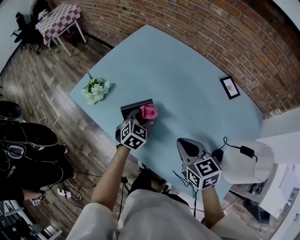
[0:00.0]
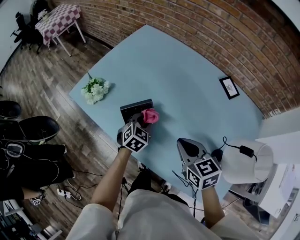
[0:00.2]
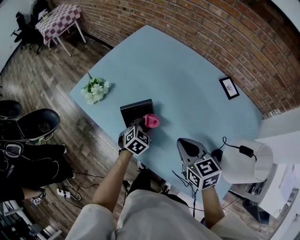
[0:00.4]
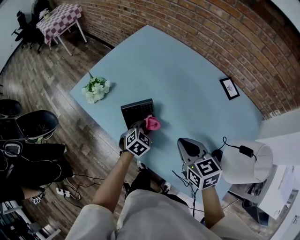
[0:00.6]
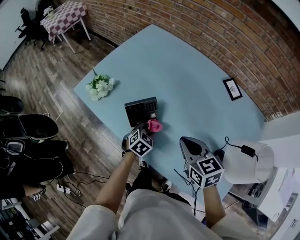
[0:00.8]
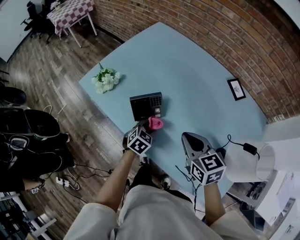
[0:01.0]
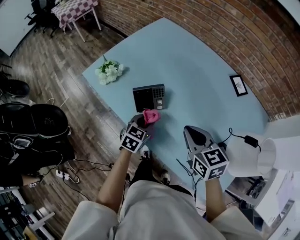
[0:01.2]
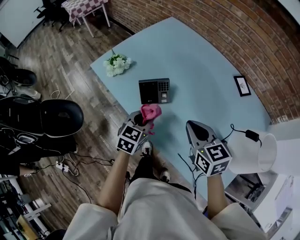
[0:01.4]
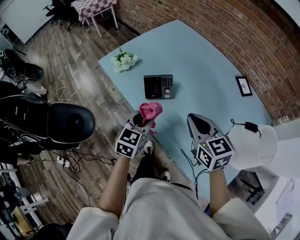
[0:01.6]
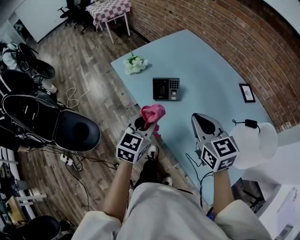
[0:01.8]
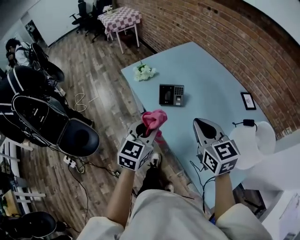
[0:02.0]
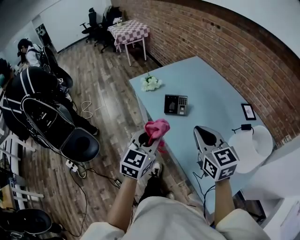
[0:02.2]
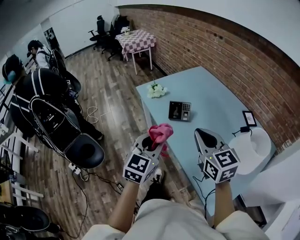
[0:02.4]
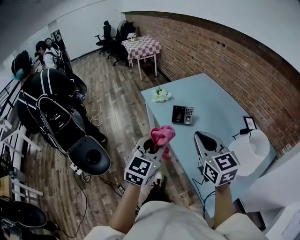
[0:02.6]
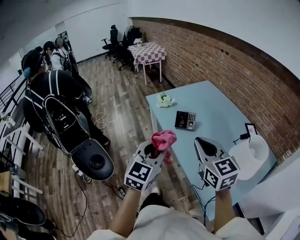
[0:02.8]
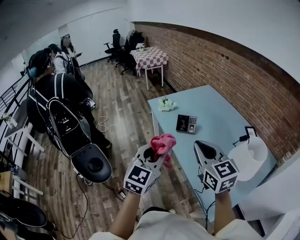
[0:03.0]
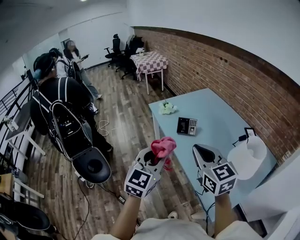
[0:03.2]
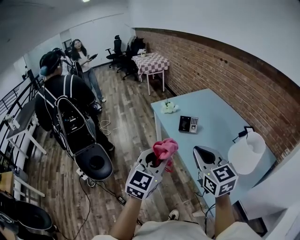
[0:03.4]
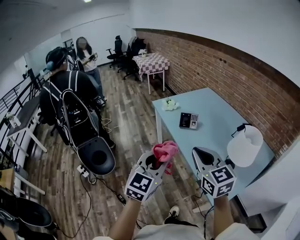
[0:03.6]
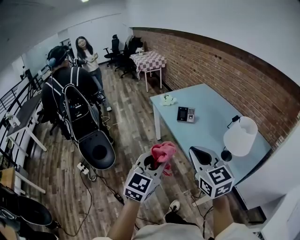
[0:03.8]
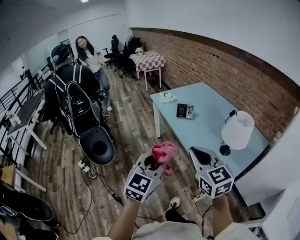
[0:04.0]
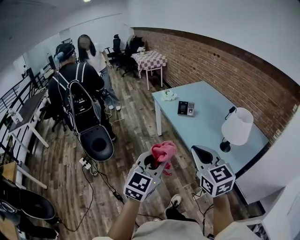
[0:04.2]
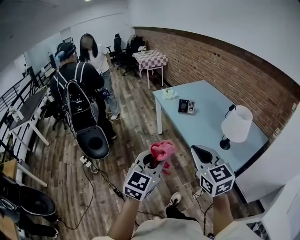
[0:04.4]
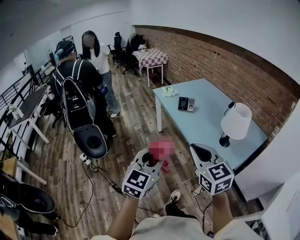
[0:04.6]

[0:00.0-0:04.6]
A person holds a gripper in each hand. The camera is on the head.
0:00.0 to 0:01.6: The left gripper is displaced backward and upward by roughly 20 cm, and rotates about 30 degrees; the right gripper shifts roughly 10 cm upward and backward.
0:01.6 to 0:03.0: The two grippers go about 30 cm backward and upward. The left gripper changes its angle by some 30 degrees; the right gripper changes its angle by some 20 degrees.
0:03.0 to 0:04.6: Both grippers travel together backward, roughly 30 cm.

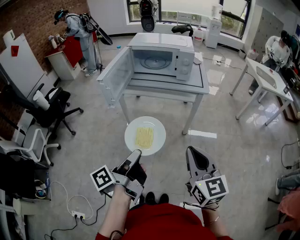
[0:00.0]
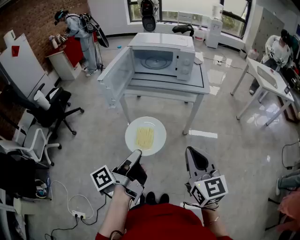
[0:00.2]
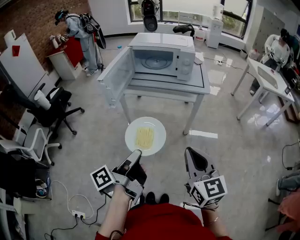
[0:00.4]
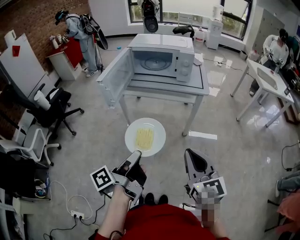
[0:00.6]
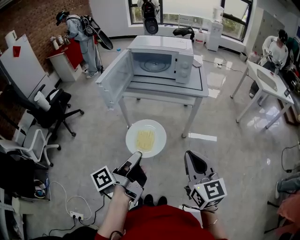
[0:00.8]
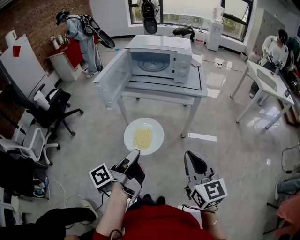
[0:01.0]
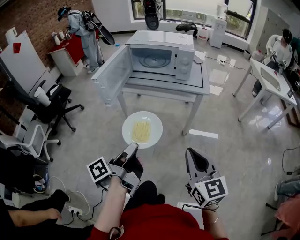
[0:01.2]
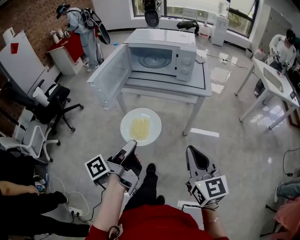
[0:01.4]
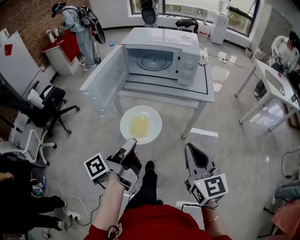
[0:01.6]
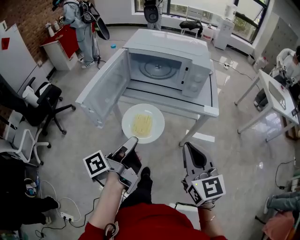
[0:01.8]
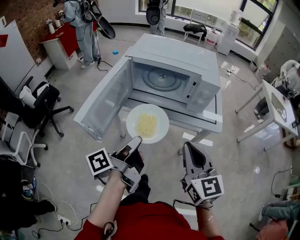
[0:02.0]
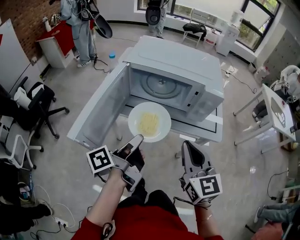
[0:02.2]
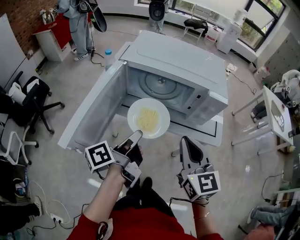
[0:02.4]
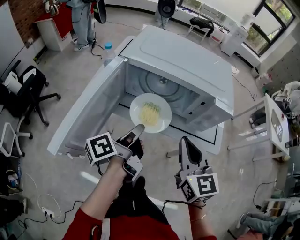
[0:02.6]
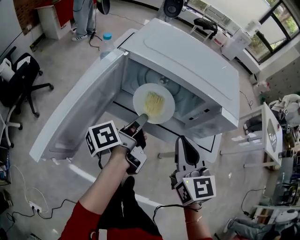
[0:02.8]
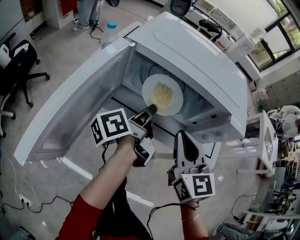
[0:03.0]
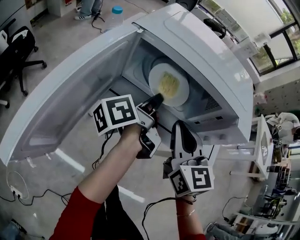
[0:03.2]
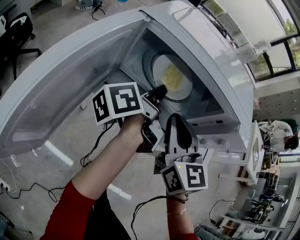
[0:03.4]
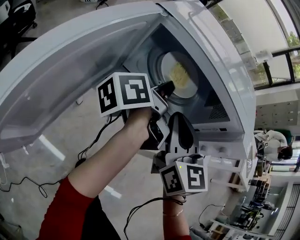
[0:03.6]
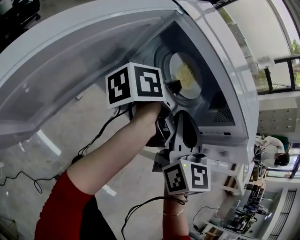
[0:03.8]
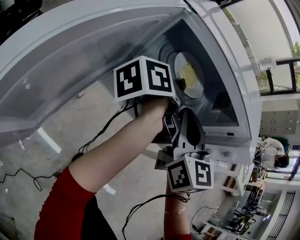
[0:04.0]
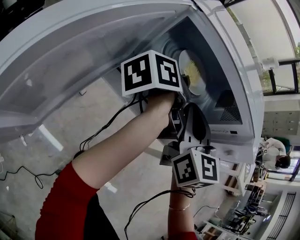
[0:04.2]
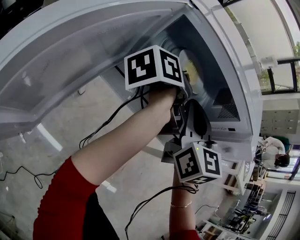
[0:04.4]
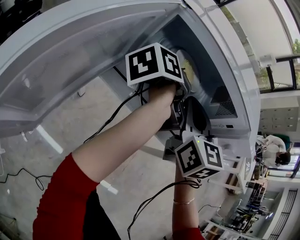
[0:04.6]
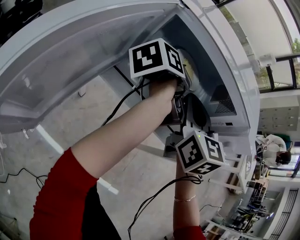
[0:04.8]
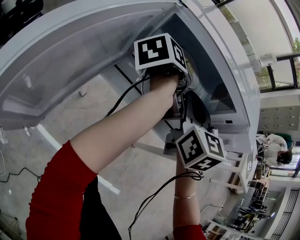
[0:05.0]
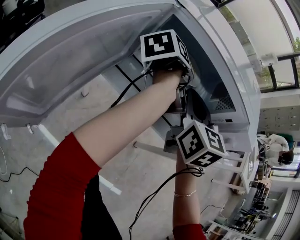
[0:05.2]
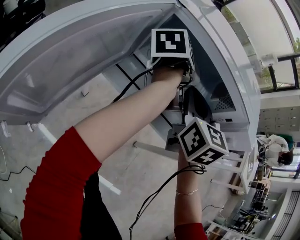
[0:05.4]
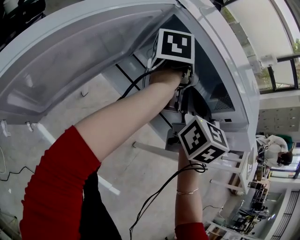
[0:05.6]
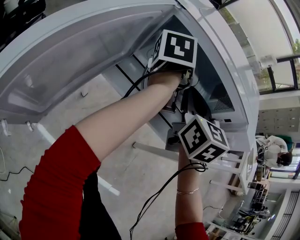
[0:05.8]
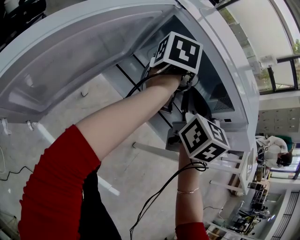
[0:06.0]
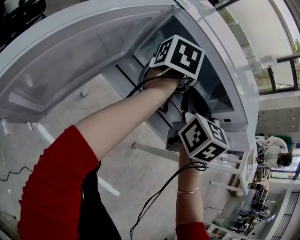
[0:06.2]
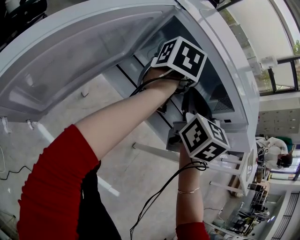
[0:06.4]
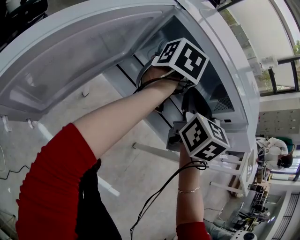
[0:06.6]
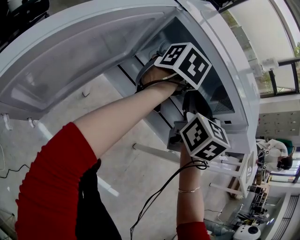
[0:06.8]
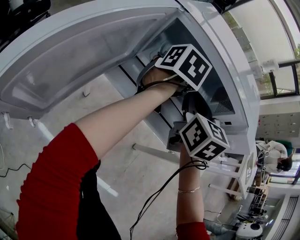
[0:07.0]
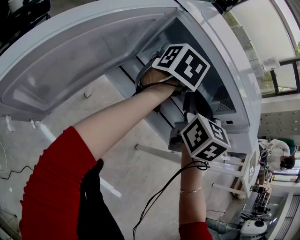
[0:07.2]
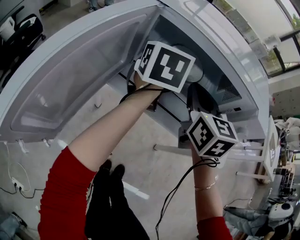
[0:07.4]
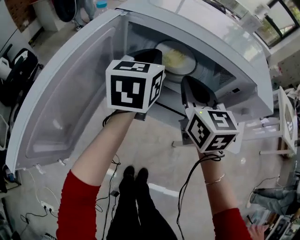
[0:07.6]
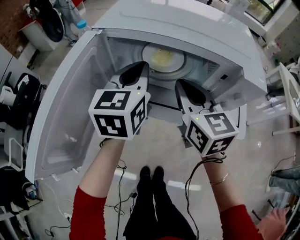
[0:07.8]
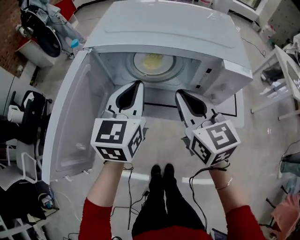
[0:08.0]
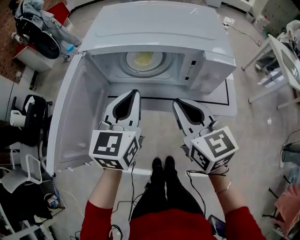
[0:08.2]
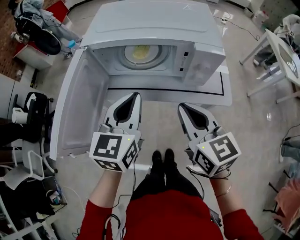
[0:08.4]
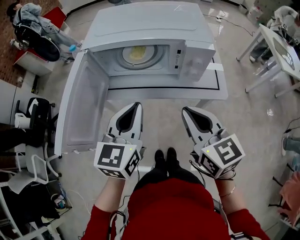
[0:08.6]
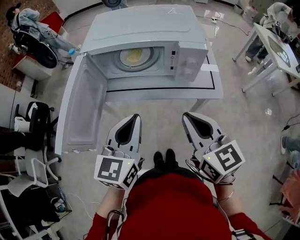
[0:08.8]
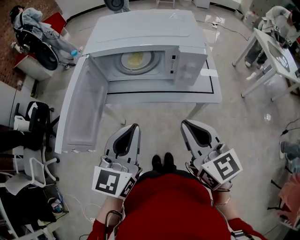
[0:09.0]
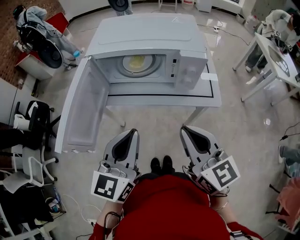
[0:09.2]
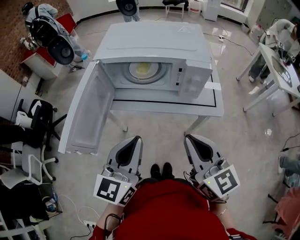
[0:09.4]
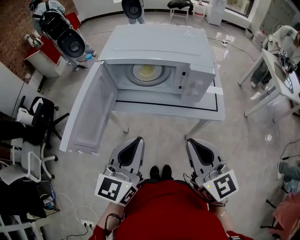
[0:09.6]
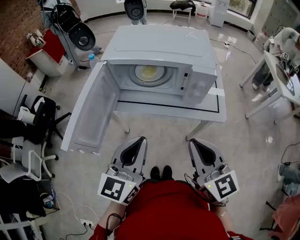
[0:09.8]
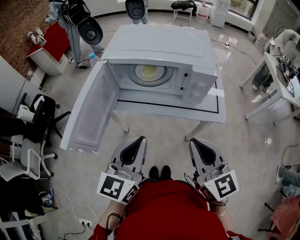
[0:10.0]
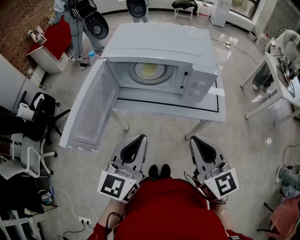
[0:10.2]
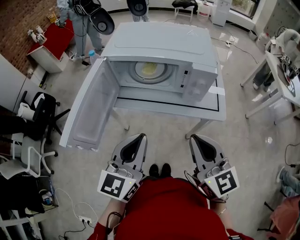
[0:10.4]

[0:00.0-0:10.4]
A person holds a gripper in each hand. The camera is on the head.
0:00.0 to 0:01.4: The two grippers go about 5 cm forward.
0:01.4 to 0:03.0: Both grippers are carried forward, some 40 cm.
0:03.0 to 0:04.4: The grippers both shift forward by roughly 10 cm.
0:04.4 to 0:06.0: The left gripper turns by approximately 40 degrees.
0:06.0 to 0:07.4: The left gripper shifts about 5 cm to the left, turns by approximately 30 degrees, and closes.
0:07.4 to 0:09.0: The grippers both shift backward by about 30 cm. The left gripper turns by approximately 30 degrees.
0:09.0 to 0:10.4: The grippers make only small movements.

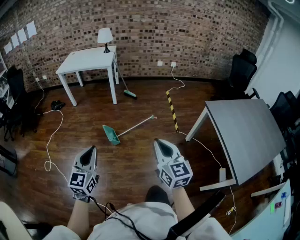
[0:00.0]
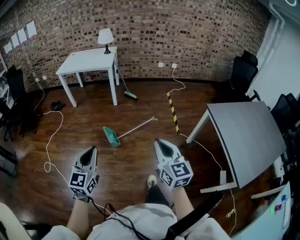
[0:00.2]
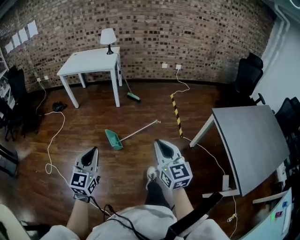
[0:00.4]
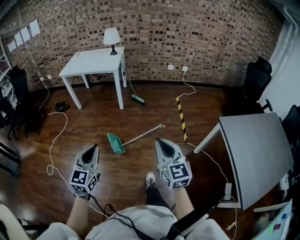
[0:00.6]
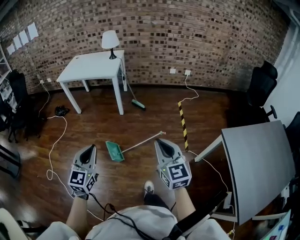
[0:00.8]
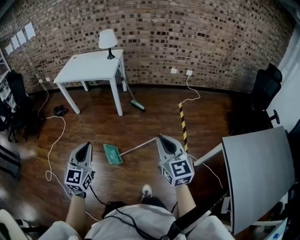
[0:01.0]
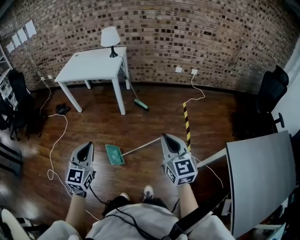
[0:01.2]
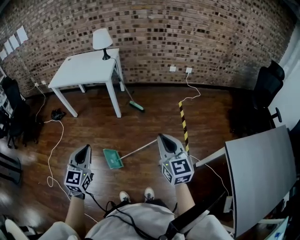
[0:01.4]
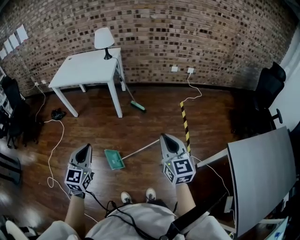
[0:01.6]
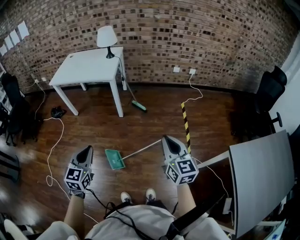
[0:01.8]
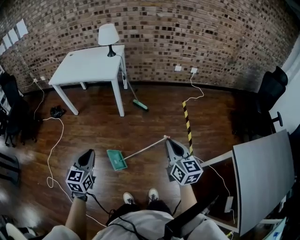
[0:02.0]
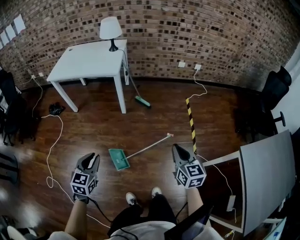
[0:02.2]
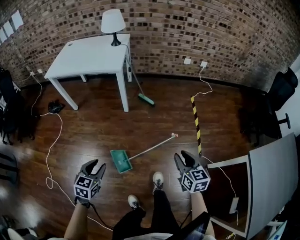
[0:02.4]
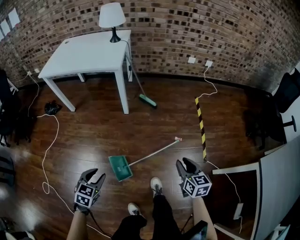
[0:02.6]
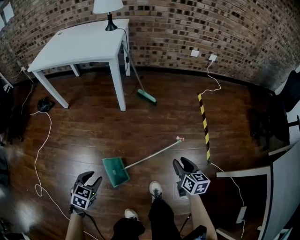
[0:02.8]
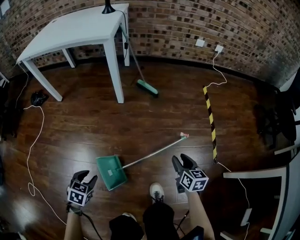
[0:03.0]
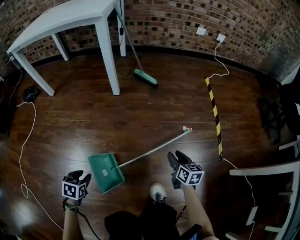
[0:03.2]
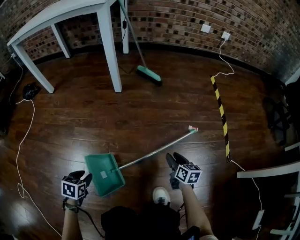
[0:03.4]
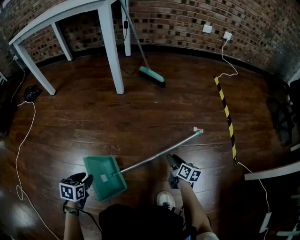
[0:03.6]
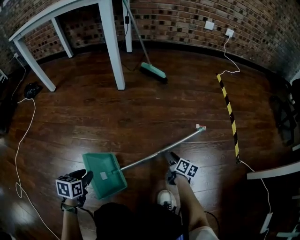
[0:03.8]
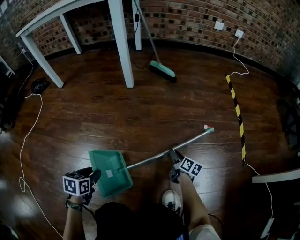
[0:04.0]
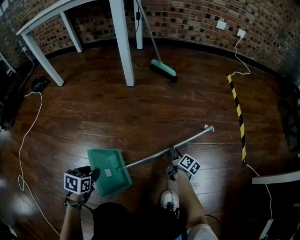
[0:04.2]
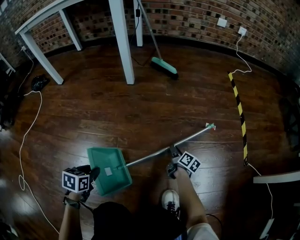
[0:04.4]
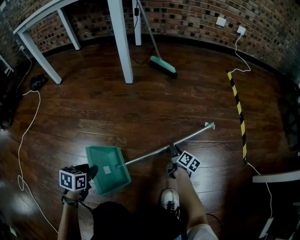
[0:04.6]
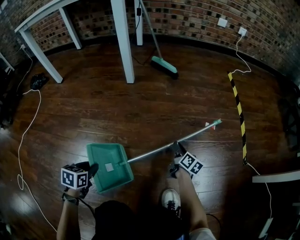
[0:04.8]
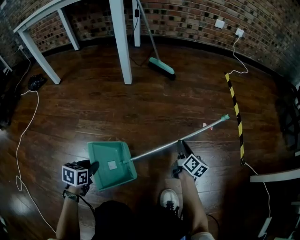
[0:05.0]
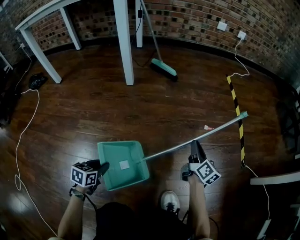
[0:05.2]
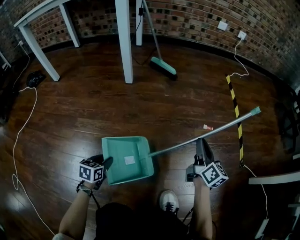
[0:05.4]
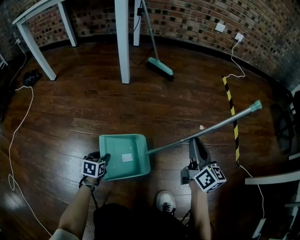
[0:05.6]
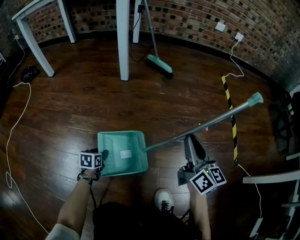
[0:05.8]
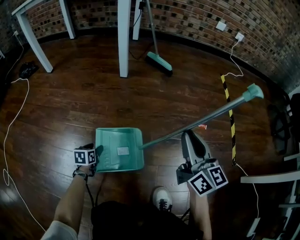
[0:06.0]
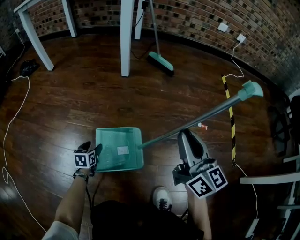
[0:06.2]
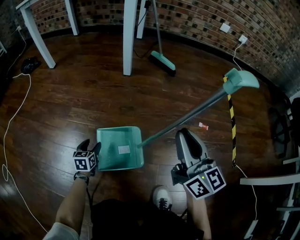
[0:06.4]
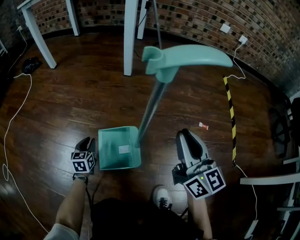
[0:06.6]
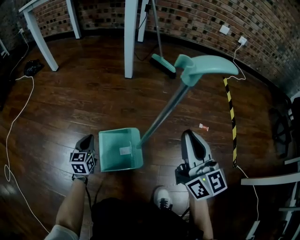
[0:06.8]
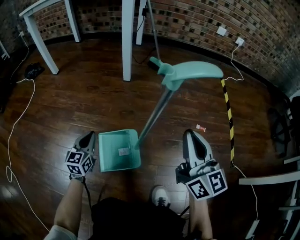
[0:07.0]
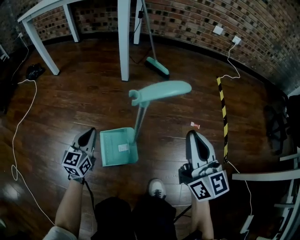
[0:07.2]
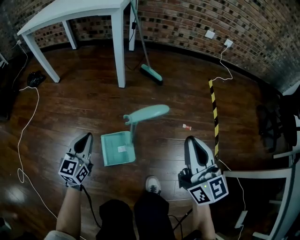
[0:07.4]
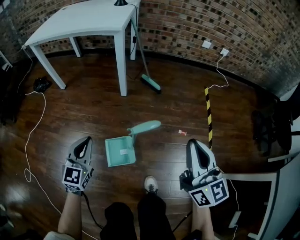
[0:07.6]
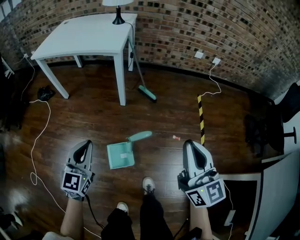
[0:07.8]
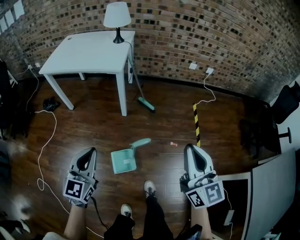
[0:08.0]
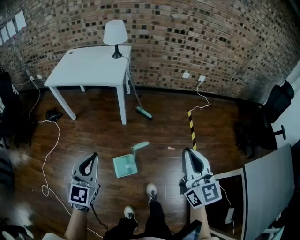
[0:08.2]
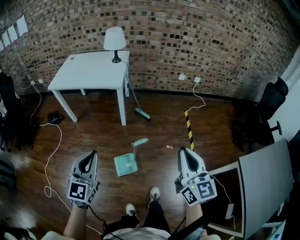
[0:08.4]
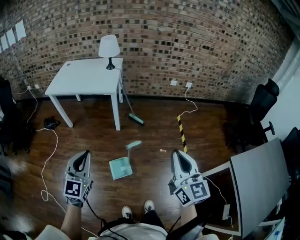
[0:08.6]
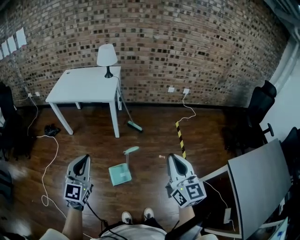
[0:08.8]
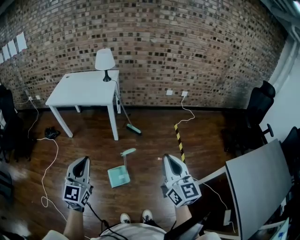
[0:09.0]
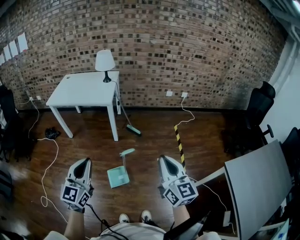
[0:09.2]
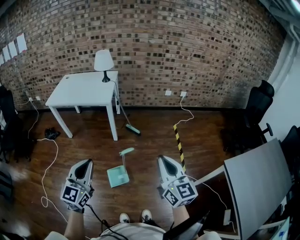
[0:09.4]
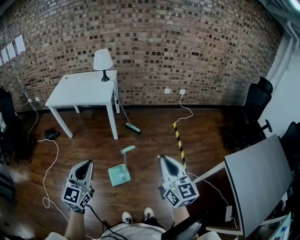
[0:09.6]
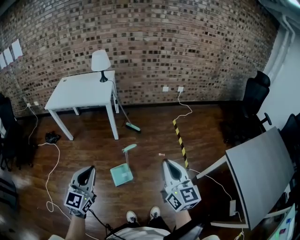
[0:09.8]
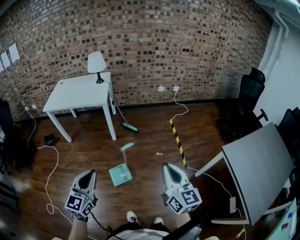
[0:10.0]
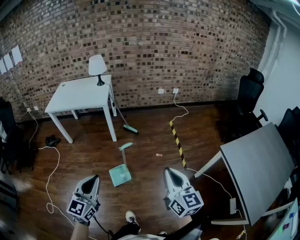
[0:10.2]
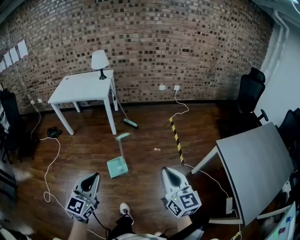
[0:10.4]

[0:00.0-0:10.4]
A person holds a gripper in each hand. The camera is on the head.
0:00.0 to 0:01.4: Both grippers travel together forward, roughly 40 cm.
0:01.4 to 0:03.0: The grippers both shift downward by approximately 60 cm. The right gripper changes its angle by approximately 30 degrees, and opens up. The left gripper points its fingers some 50 degrees further downward, and opens up.
0:03.0 to 0:04.4: The right gripper is displaced downward by some 40 cm, and rolls clockwise, seen from behind, by roughly 40 degrees. The left gripper is displaced downward by roughly 25 cm, and rotates some 20 degrees.
0:04.4 to 0:06.0: The right gripper travels upward by some 35 cm, and rotates around the line of its fingers by about 50 degrees, counterclockwise from behind; the left gripper goes approximately 15 cm downward and forward, and opens up.
0:06.0 to 0:07.4: The left gripper is displaced upward by some 40 cm, angles its fingers upward, by about 40 degrees, and closes its fingers; the right gripper goes about 25 cm upward.
0:07.4 to 0:09.0: The two grippers go approximately 50 cm upward. The left gripper changes its angle by approximately 20 degrees.
0:09.0 to 0:10.4: The right gripper moves backward, some 20 cm; the left gripper is displaced backward and to the right by roughly 25 cm.
